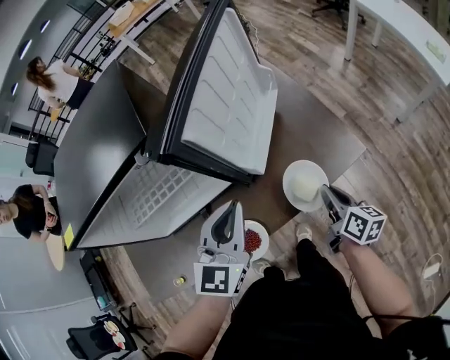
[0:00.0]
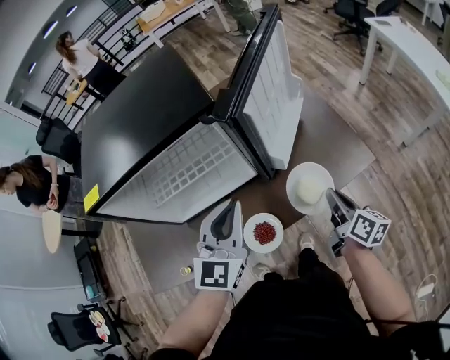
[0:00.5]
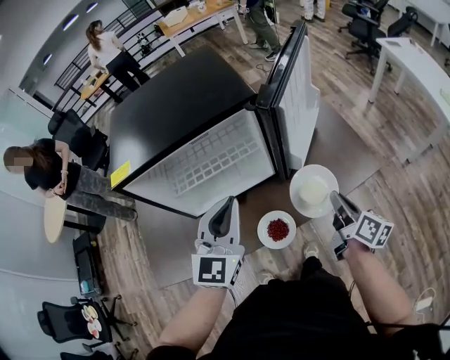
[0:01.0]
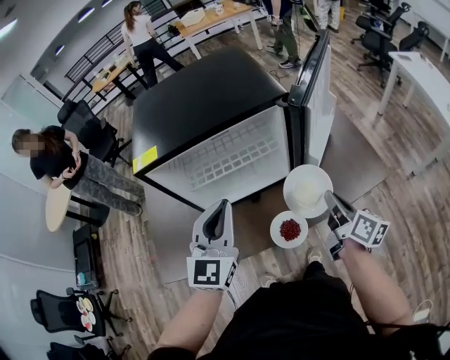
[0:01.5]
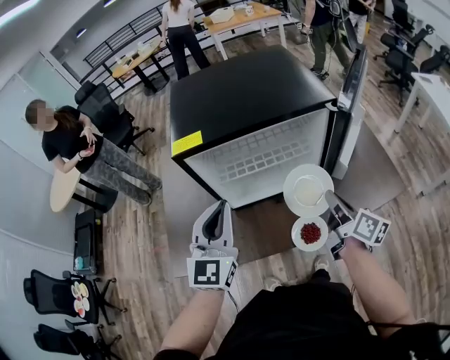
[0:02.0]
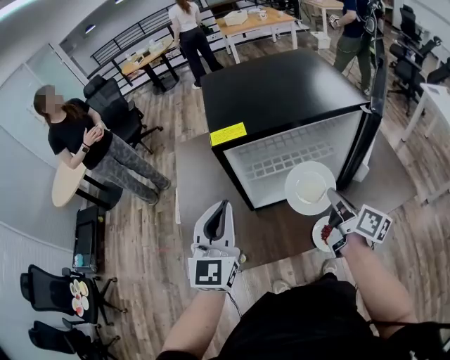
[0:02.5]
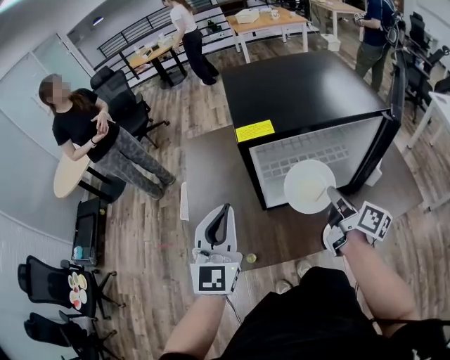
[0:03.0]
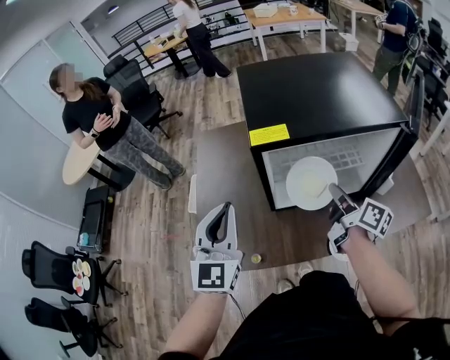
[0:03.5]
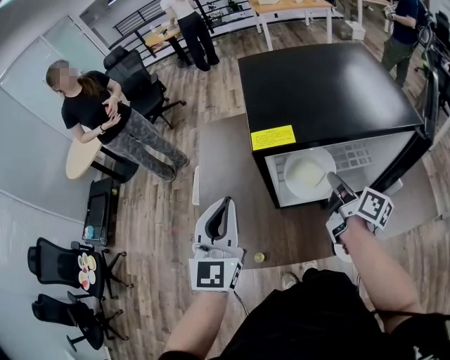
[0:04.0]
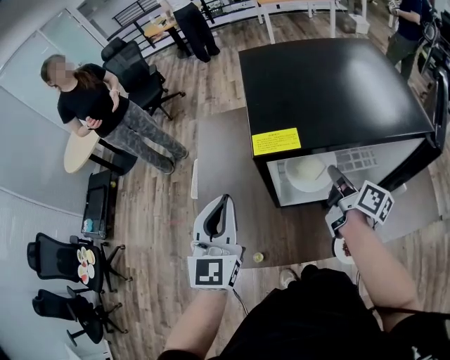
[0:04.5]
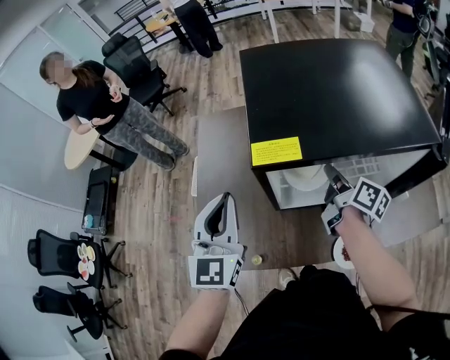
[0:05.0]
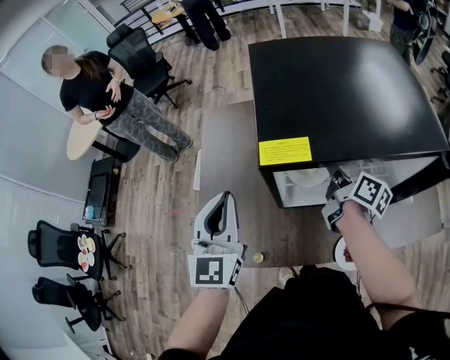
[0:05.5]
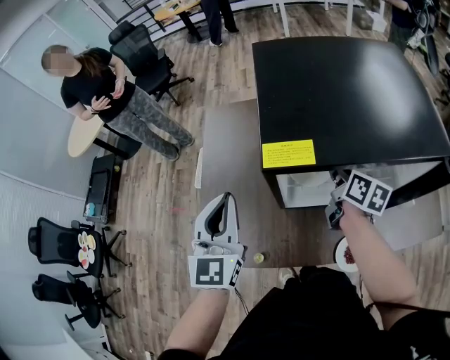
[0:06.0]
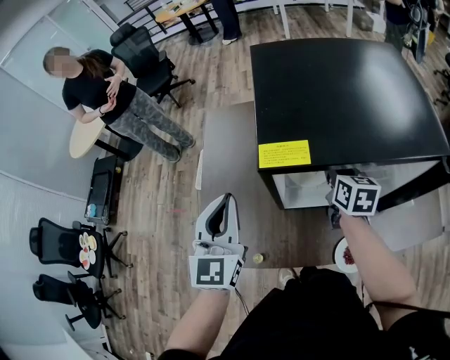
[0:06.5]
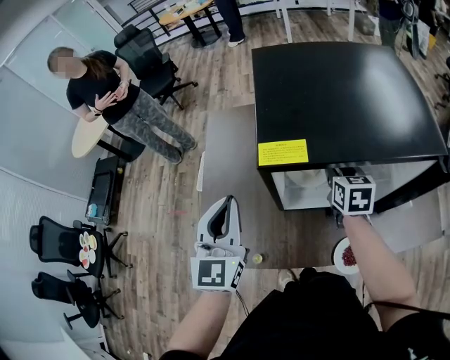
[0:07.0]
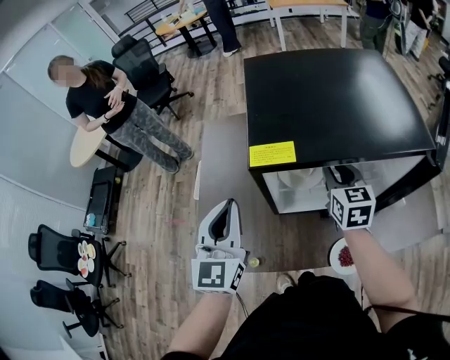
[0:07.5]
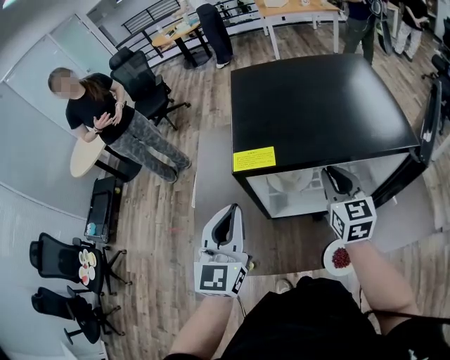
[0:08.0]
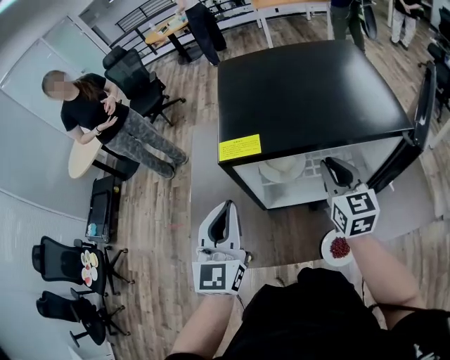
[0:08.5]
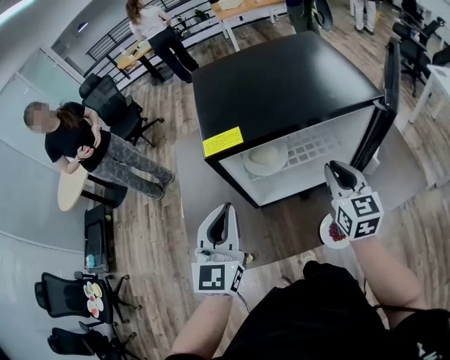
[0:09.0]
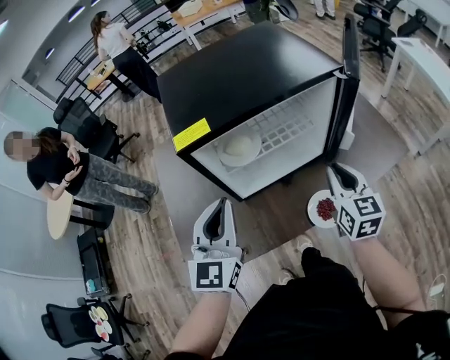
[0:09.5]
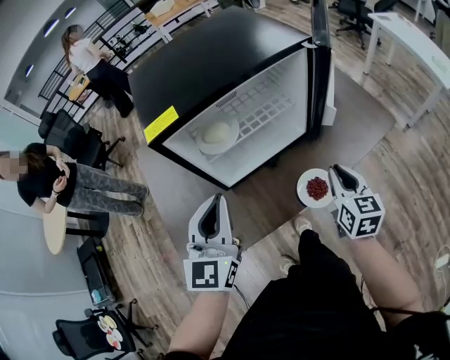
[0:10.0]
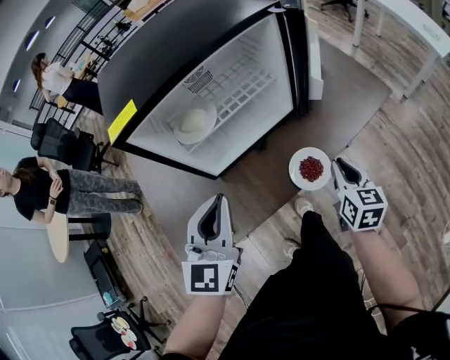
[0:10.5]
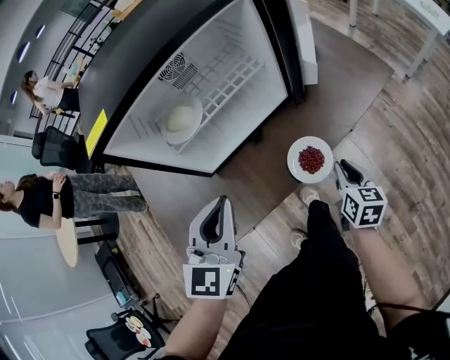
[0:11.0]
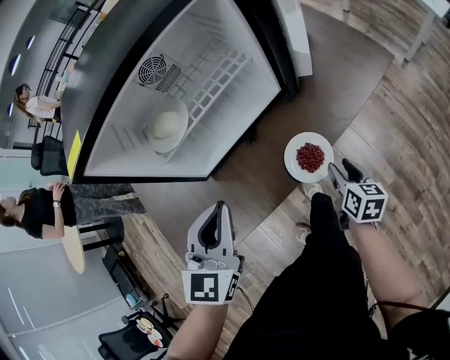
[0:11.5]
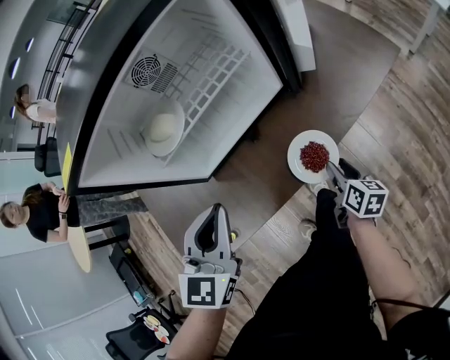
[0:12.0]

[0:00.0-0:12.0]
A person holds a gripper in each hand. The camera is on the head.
0:00.0 to 0:02.0: The left gripper travels to the left by about 35 cm, and turns by about 20 degrees. The right gripper moves to the left and upward, about 30 cm.
0:02.0 to 0:04.0: The left gripper moves to the left, some 15 cm; the right gripper is displaced to the left and forward by approximately 20 cm.
0:04.0 to 0:06.0: The left gripper shifts approximately 5 cm forward; the right gripper travels forward by some 10 cm, and turns by approximately 20 degrees.
0:06.0 to 0:08.0: The right gripper travels upward and backward by roughly 10 cm, and twists approximately 40 degrees counterclockwise, seen from behind. Meanwhile the left gripper travels to the right by approximately 5 cm.
0:08.0 to 0:10.0: The left gripper ends up approximately 10 cm from where it was, and swivels approximately 20 degrees. The right gripper shifts by approximately 30 cm, and turns by roughly 30 degrees.
0:10.0 to 0:12.0: The right gripper is displaced downward by roughly 25 cm, rotates approximately 40 degrees, and opens up. The left gripper shifts about 15 cm downward and to the right, and rotates roughly 20 degrees.

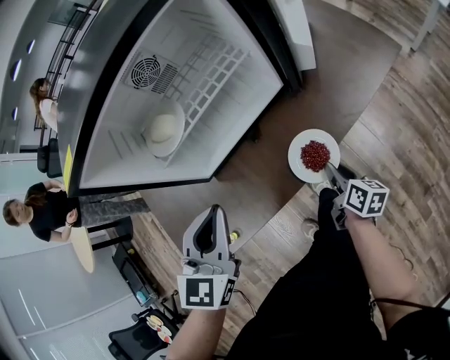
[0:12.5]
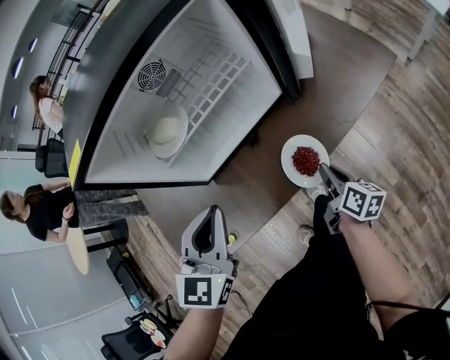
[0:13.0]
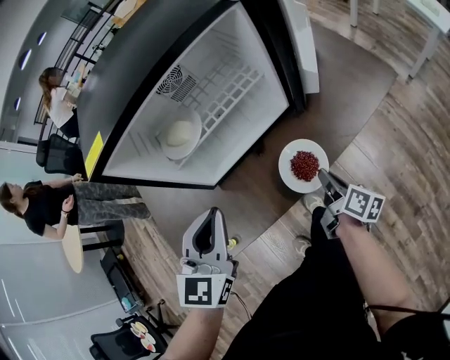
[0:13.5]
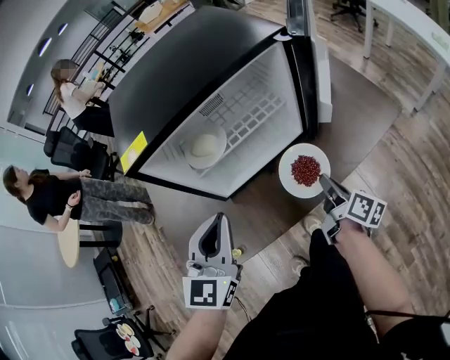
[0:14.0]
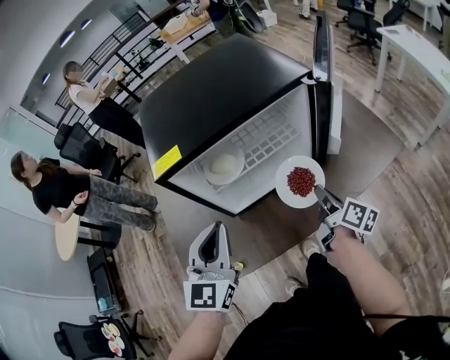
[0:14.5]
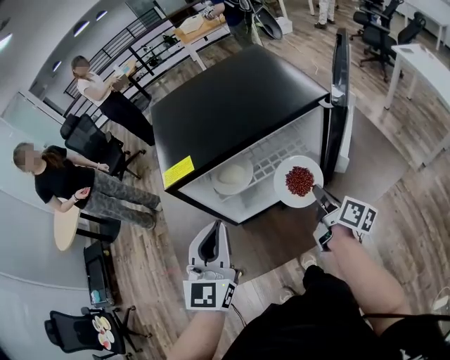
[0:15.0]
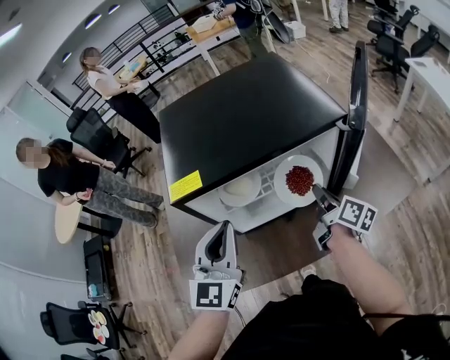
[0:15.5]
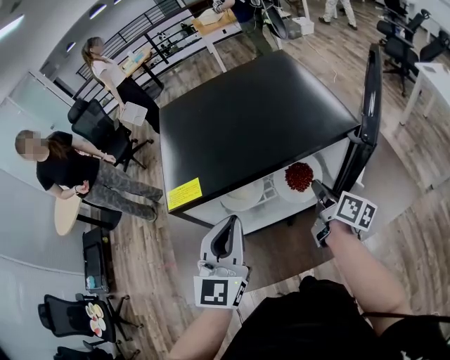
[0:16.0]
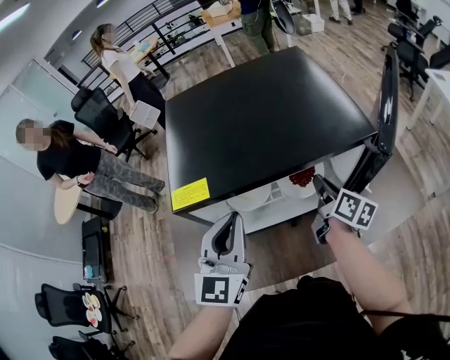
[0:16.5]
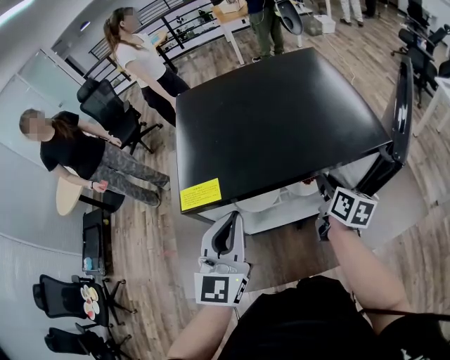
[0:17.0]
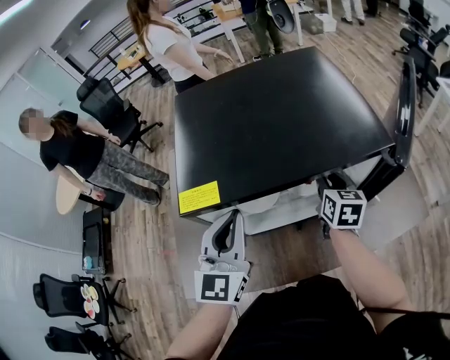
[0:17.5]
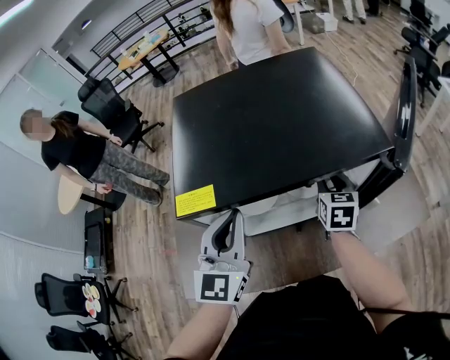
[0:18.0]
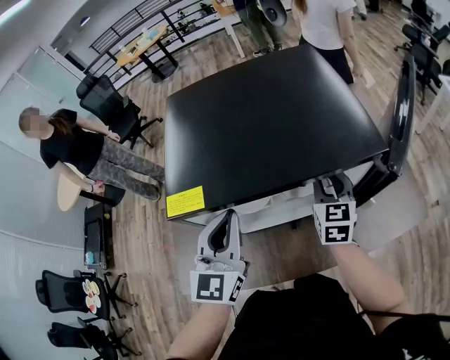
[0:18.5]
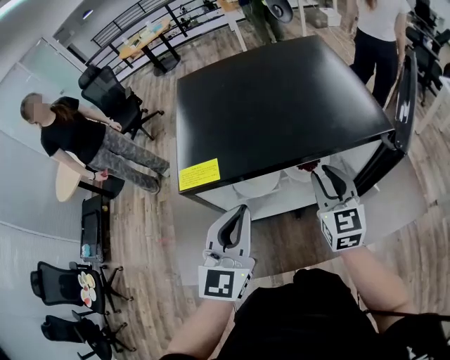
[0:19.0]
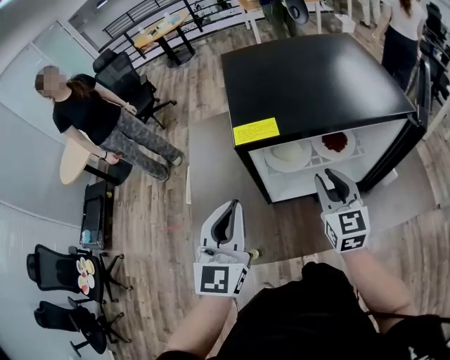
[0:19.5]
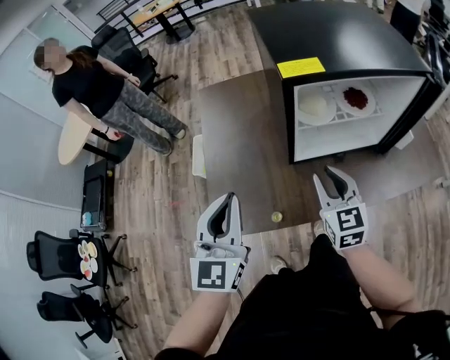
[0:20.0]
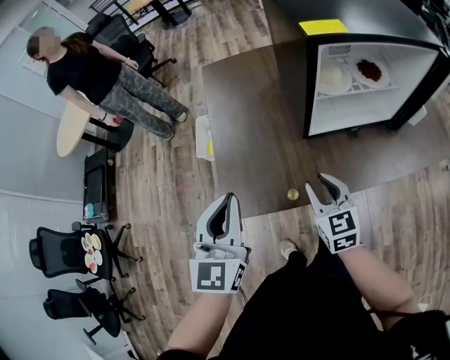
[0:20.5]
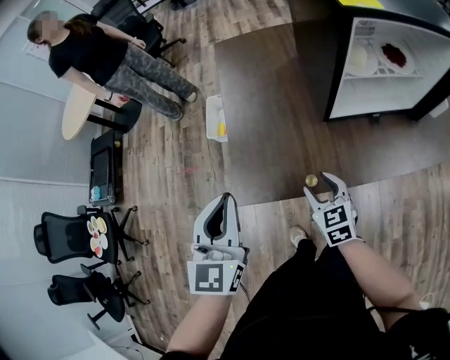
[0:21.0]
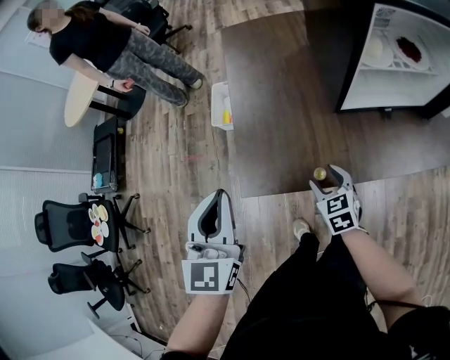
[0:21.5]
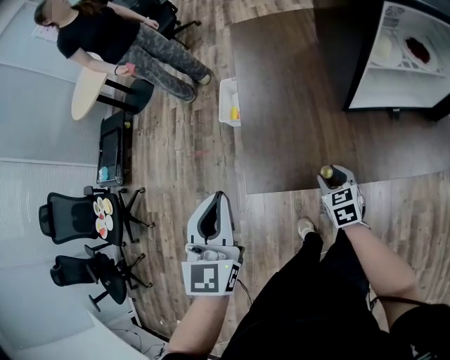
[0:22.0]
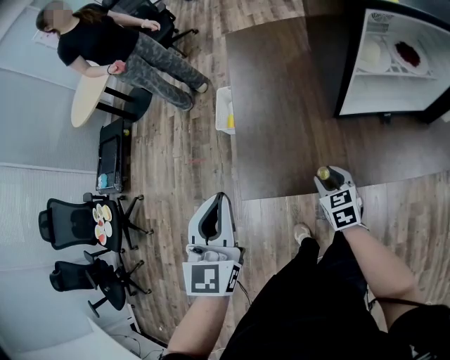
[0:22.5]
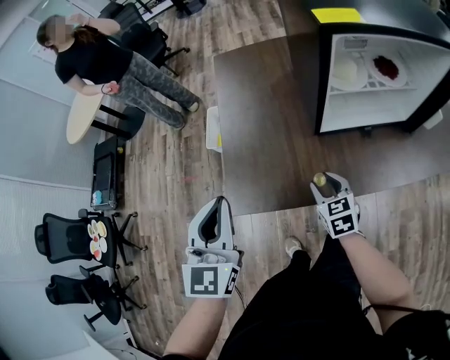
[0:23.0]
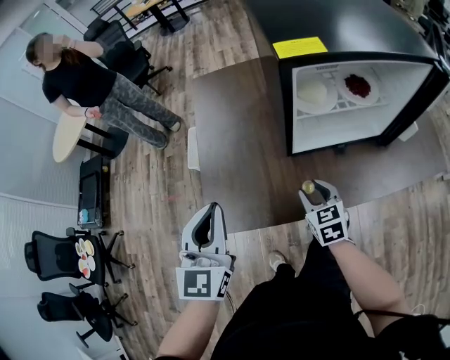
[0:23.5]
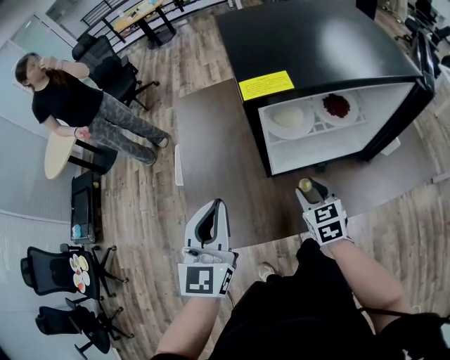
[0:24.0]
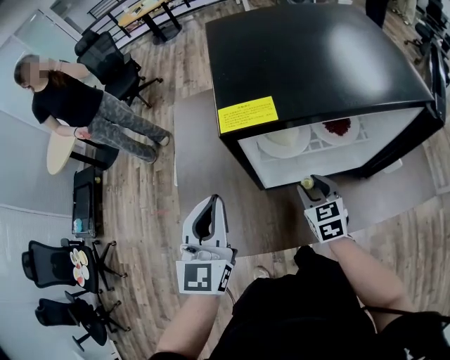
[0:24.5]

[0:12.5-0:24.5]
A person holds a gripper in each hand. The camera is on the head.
0:12.5 to 0:14.5: The right gripper goes about 25 cm upward and forward, and closes up. Meanwhile the left gripper heads upward and to the left, covering roughly 15 cm.
0:14.5 to 0:16.5: The right gripper is displaced forward by some 20 cm. Meanwhile the left gripper heads forward, covering about 10 cm.
0:16.5 to 0:18.5: The right gripper rolls counterclockwise, seen from behind, by approximately 50 degrees, and opens its fingers.
0:18.5 to 0:20.5: The two grippers go roughly 40 cm to the left and backward. The right gripper rotates some 20 degrees.
0:20.5 to 0:22.5: The left gripper is displaced to the left by approximately 5 cm, while the right gripper moves downward, approximately 15 cm.
0:22.5 to 0:24.5: The left gripper heads to the right and forward, covering roughly 30 cm. Meanwhile the right gripper moves to the right, forward and upward, roughly 30 cm.

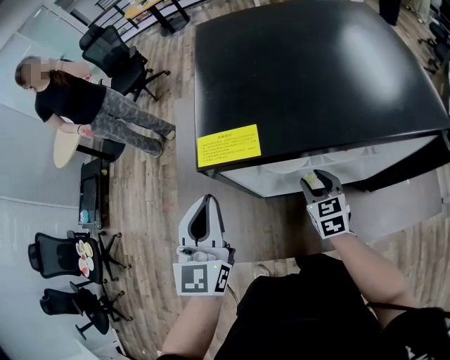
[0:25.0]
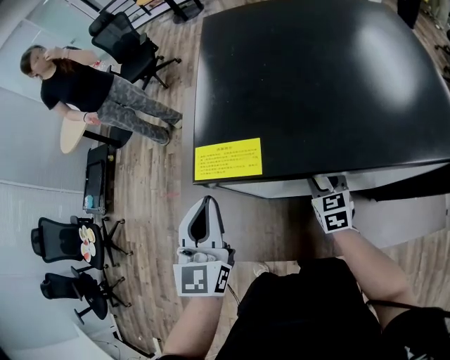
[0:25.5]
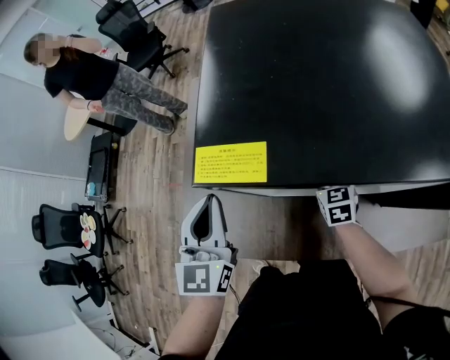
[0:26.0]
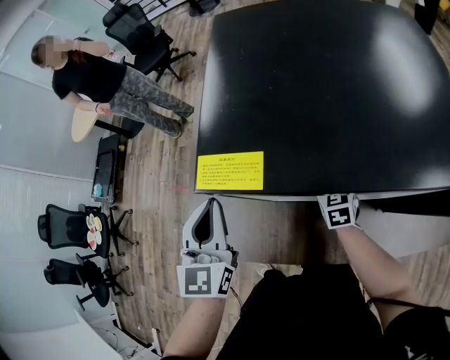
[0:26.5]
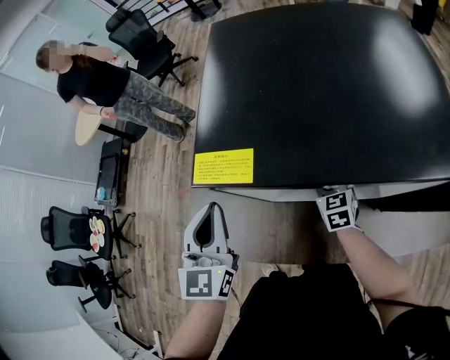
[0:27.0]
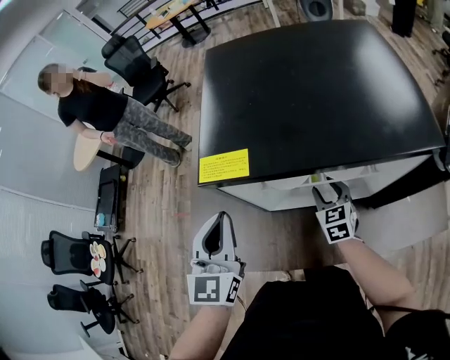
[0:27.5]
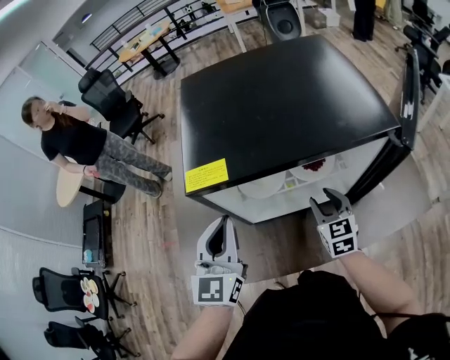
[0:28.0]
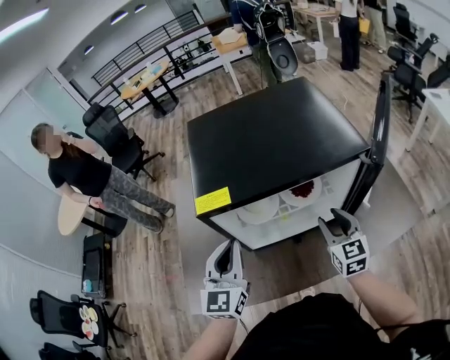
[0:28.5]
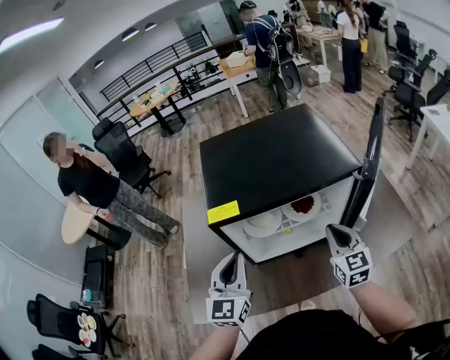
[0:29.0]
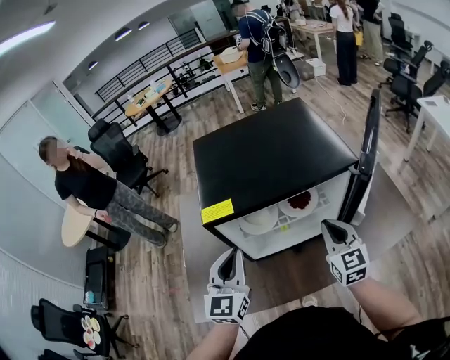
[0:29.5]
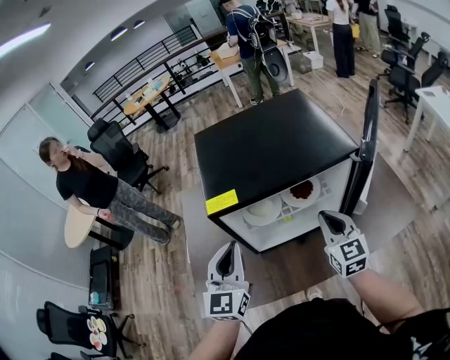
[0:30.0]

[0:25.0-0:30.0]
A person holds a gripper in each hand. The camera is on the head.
0:27.5 to 0:30.0: The left gripper moves to the right, about 5 cm, while the right gripper shifts approximately 25 cm upward, backward and to the right, changes its angle by some 30 degrees, and closes up.
